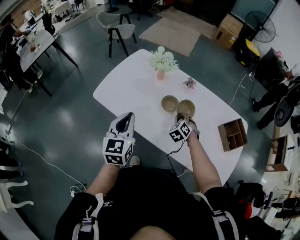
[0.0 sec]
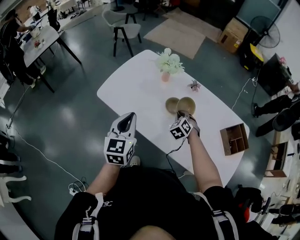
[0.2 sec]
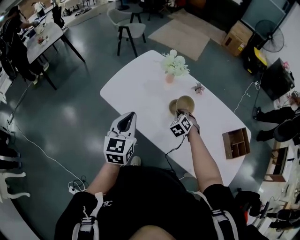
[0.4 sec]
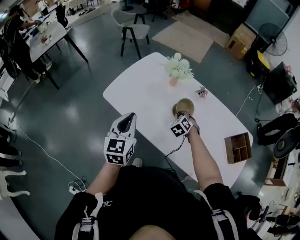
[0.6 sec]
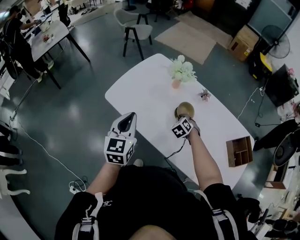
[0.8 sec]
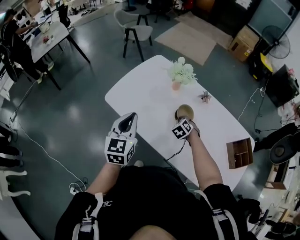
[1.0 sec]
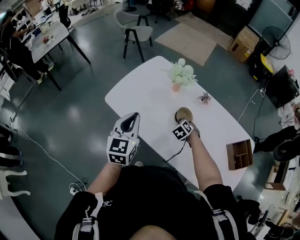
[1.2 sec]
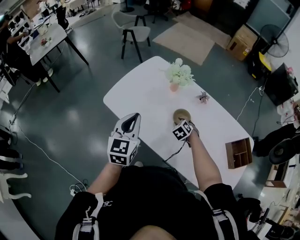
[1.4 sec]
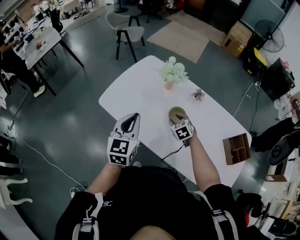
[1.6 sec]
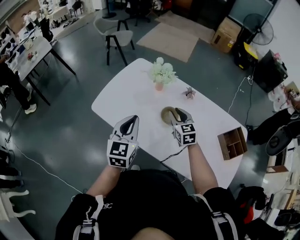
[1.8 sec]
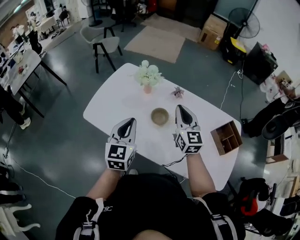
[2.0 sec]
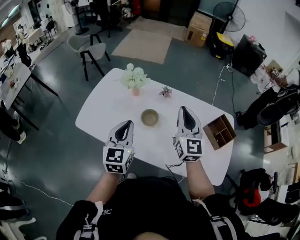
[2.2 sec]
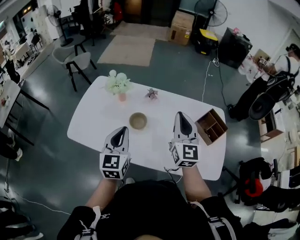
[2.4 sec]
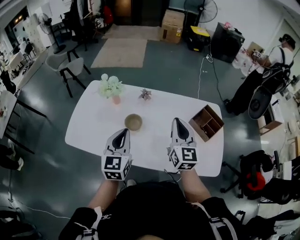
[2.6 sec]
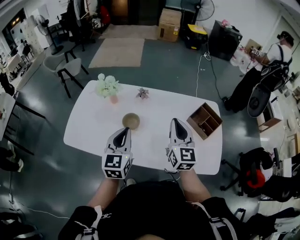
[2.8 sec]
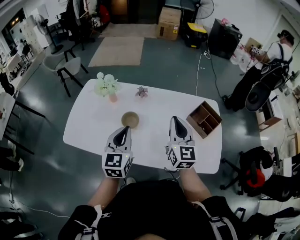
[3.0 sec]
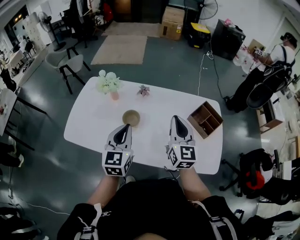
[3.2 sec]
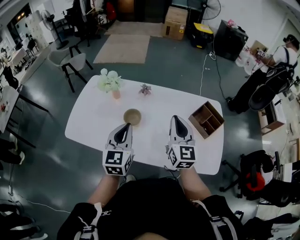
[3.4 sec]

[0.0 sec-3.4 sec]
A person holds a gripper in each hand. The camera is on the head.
0.0 sec to 1.6 sec: The right gripper goes some 10 cm to the left and forward, swivels some 20 degrees, and opens; the left gripper goes roughly 5 cm forward.
1.6 sec to 3.4 sec: The left gripper shifts by approximately 20 cm, and turns by roughly 20 degrees. The right gripper ends up some 35 cm from where it was, tilts its fingers some 50 degrees upward, and closes up.

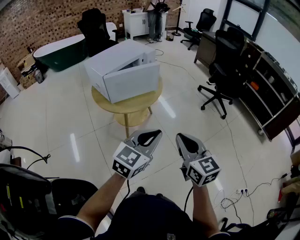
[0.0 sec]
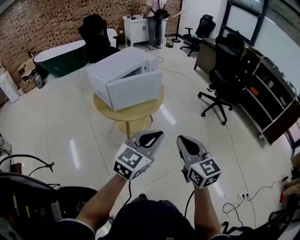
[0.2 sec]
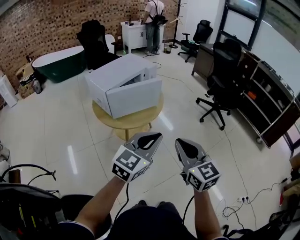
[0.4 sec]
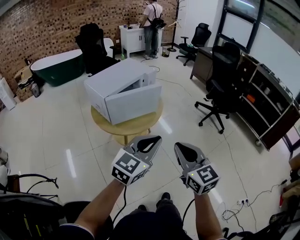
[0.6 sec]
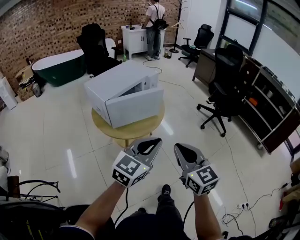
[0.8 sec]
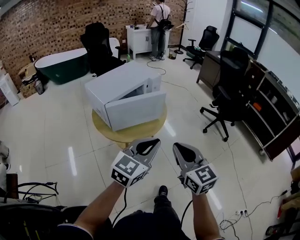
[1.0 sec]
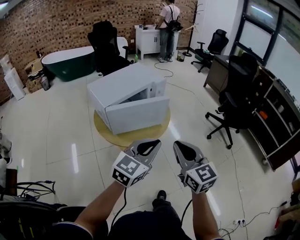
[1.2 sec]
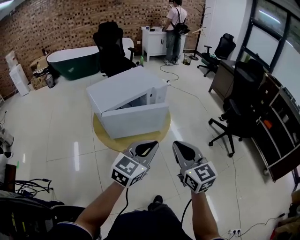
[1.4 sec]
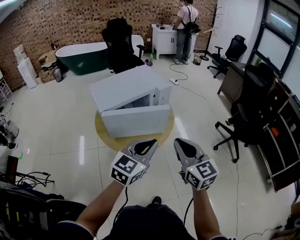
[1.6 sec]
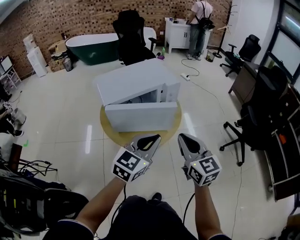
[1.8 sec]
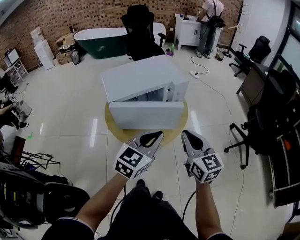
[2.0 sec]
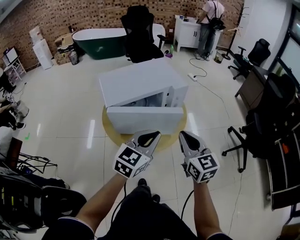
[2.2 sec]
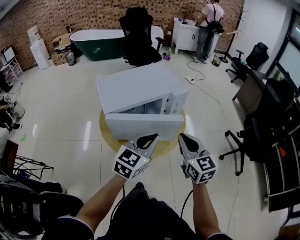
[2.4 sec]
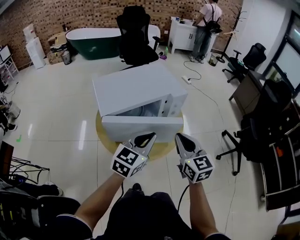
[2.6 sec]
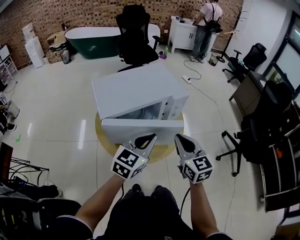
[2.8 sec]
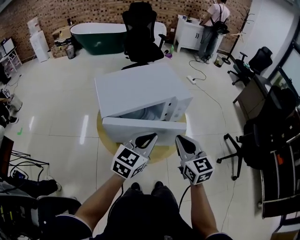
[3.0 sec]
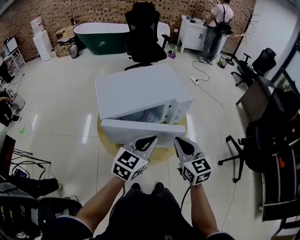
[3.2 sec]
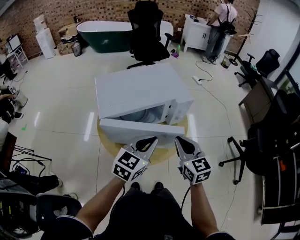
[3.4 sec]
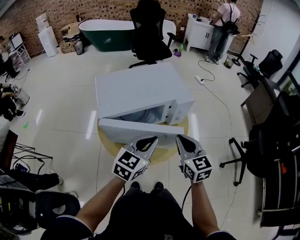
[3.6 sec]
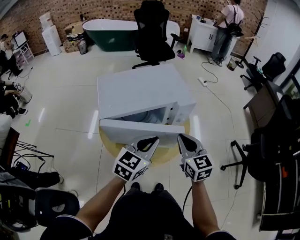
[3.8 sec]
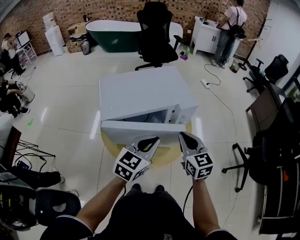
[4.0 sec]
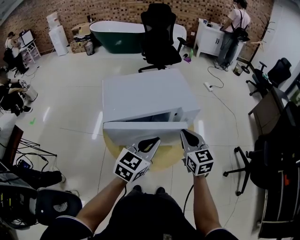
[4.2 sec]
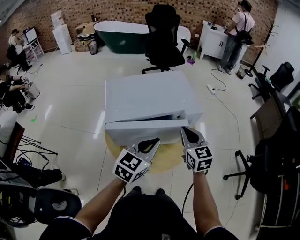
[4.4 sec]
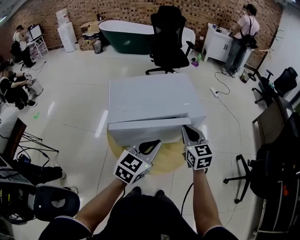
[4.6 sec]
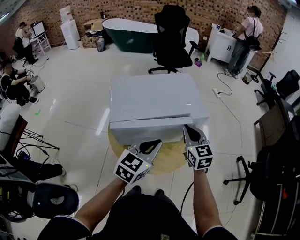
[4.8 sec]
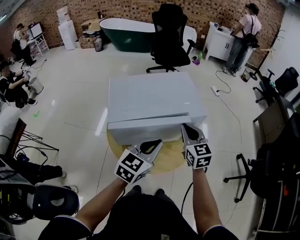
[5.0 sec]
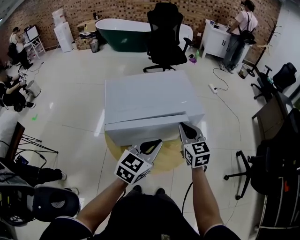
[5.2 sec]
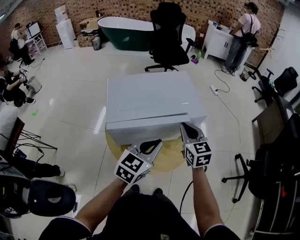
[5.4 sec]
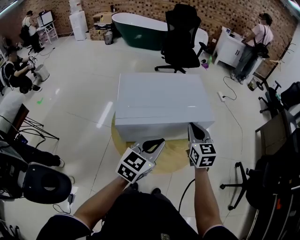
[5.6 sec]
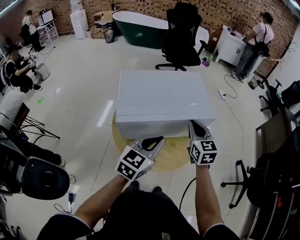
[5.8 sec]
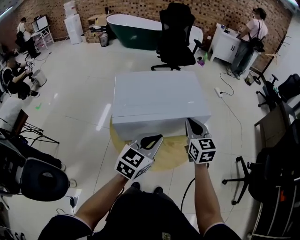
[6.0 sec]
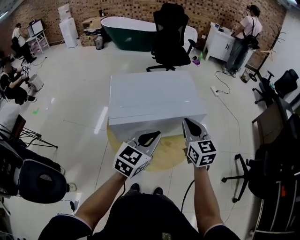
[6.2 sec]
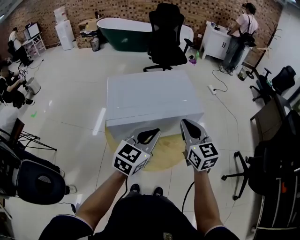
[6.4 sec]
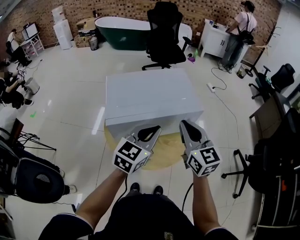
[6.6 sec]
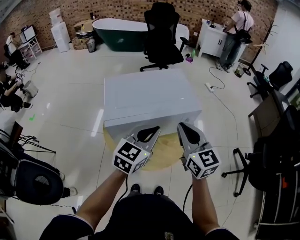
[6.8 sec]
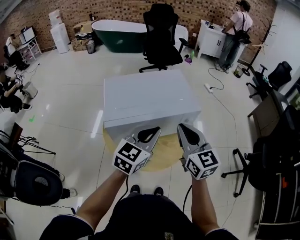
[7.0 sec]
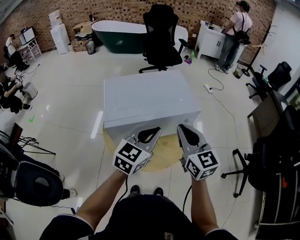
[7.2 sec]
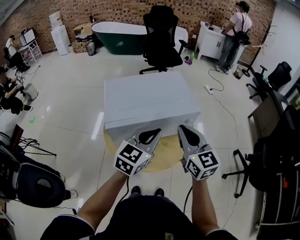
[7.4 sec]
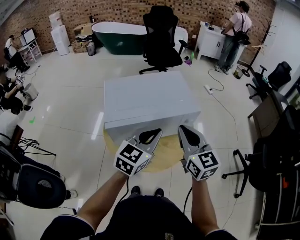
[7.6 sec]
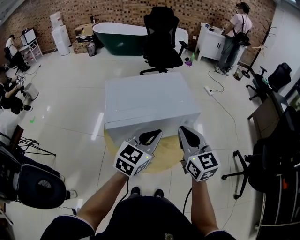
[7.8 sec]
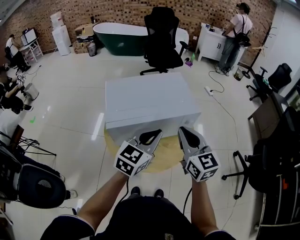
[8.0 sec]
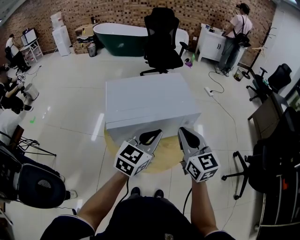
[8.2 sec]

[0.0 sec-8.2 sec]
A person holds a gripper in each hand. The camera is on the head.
0.0 sec to 1.6 sec: Both grippers travel together forward, approximately 25 cm.
1.6 sec to 3.2 sec: The left gripper heads forward, covering roughly 15 cm. Meanwhile the right gripper heads forward and downward, covering approximately 20 cm.
3.2 sec to 5.0 sec: The right gripper heads forward, covering roughly 15 cm.
5.0 sec to 6.6 sec: The right gripper shifts about 10 cm upward and backward.
6.6 sec to 8.2 sec: The grippers move only a little.

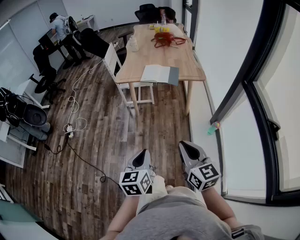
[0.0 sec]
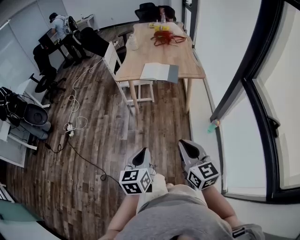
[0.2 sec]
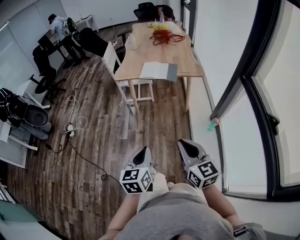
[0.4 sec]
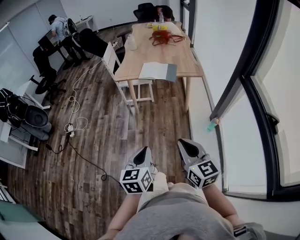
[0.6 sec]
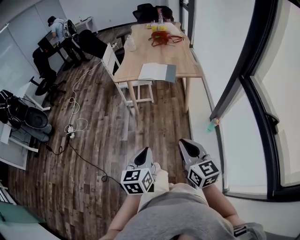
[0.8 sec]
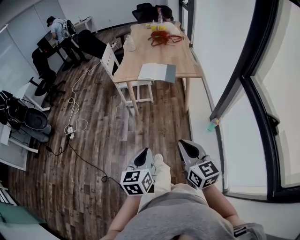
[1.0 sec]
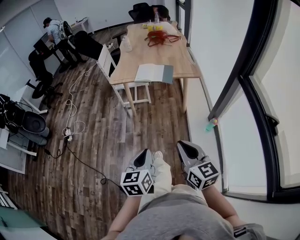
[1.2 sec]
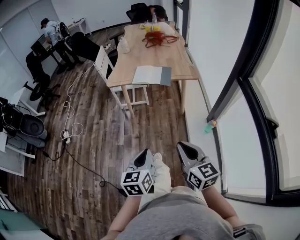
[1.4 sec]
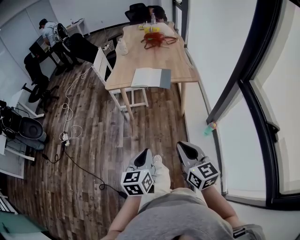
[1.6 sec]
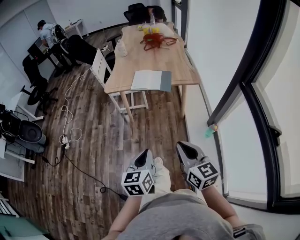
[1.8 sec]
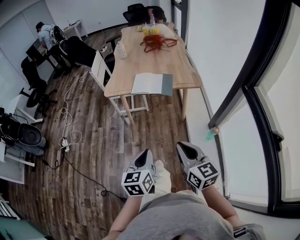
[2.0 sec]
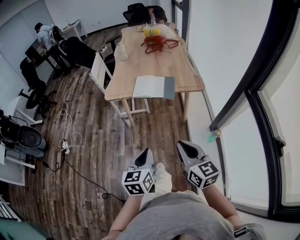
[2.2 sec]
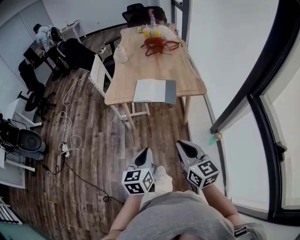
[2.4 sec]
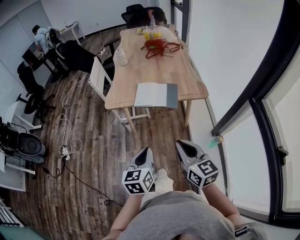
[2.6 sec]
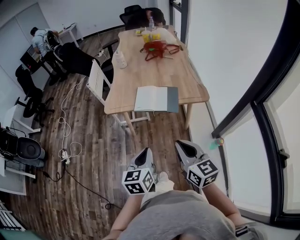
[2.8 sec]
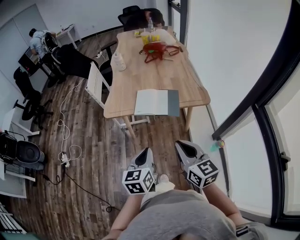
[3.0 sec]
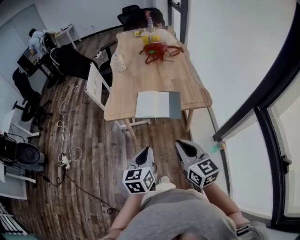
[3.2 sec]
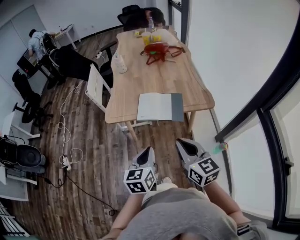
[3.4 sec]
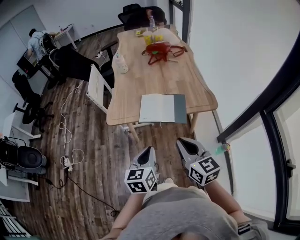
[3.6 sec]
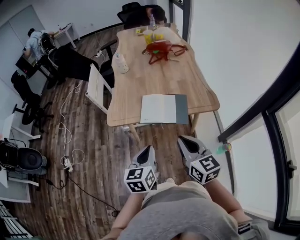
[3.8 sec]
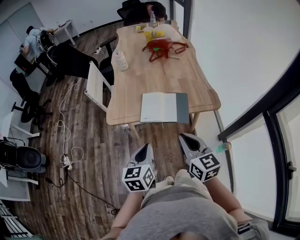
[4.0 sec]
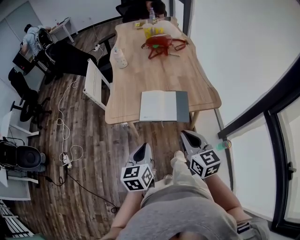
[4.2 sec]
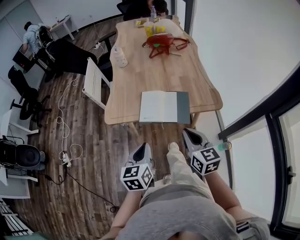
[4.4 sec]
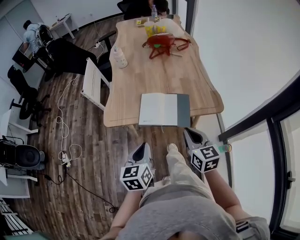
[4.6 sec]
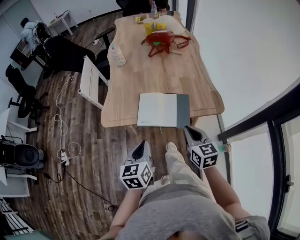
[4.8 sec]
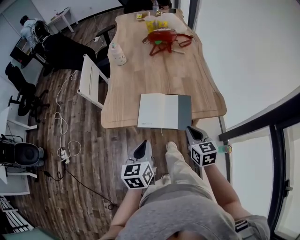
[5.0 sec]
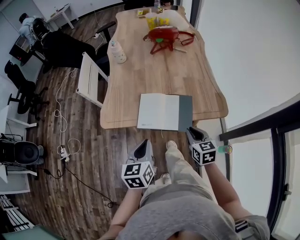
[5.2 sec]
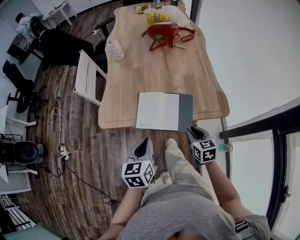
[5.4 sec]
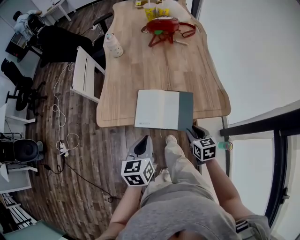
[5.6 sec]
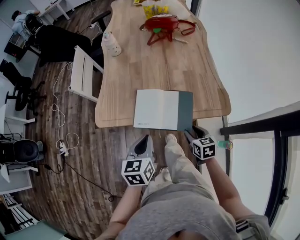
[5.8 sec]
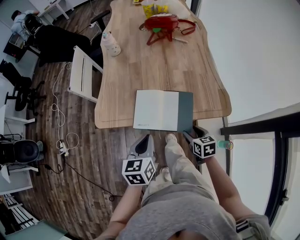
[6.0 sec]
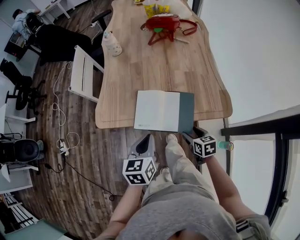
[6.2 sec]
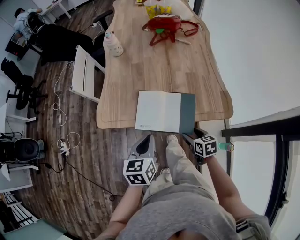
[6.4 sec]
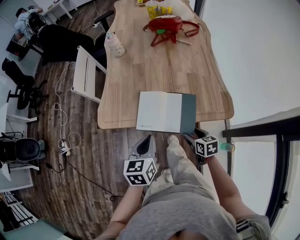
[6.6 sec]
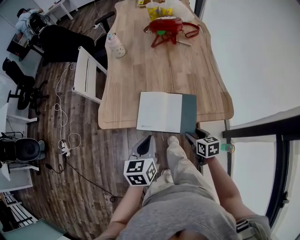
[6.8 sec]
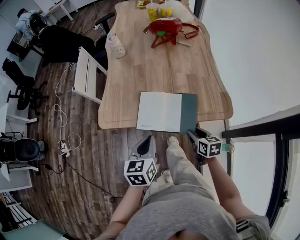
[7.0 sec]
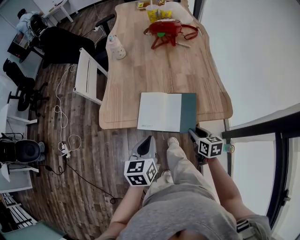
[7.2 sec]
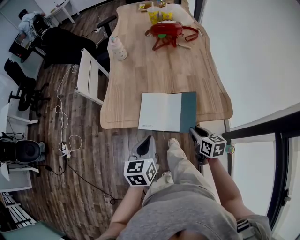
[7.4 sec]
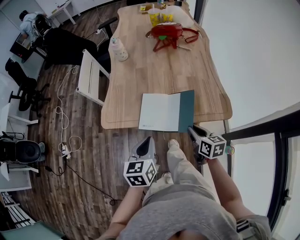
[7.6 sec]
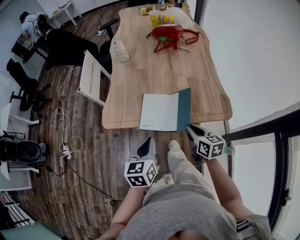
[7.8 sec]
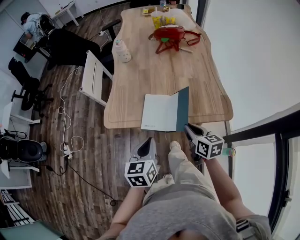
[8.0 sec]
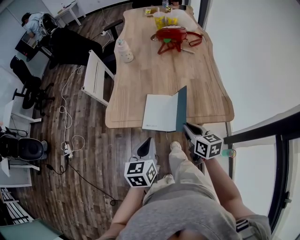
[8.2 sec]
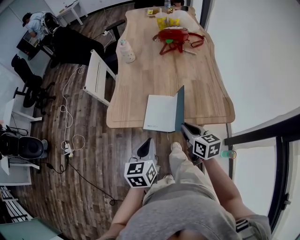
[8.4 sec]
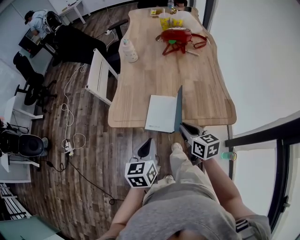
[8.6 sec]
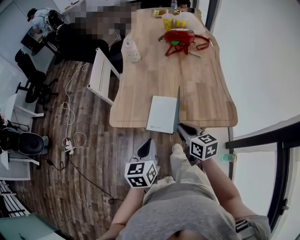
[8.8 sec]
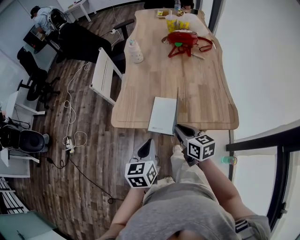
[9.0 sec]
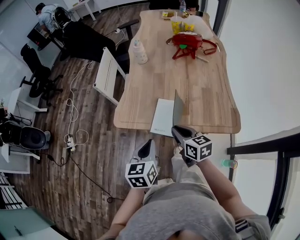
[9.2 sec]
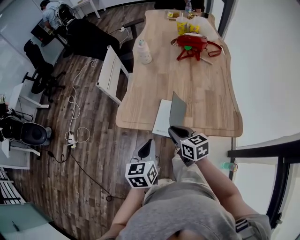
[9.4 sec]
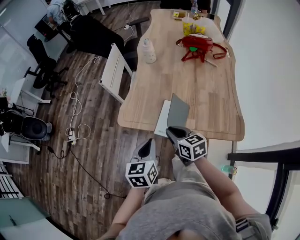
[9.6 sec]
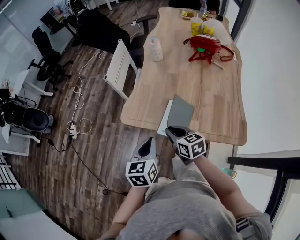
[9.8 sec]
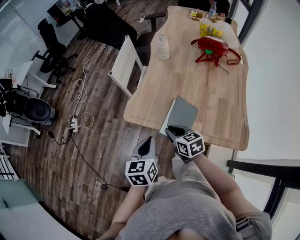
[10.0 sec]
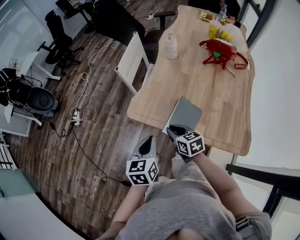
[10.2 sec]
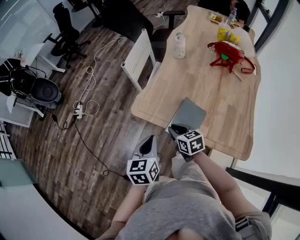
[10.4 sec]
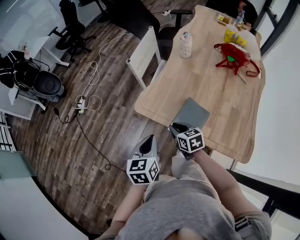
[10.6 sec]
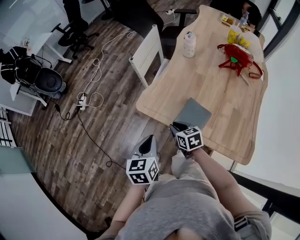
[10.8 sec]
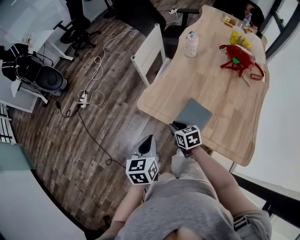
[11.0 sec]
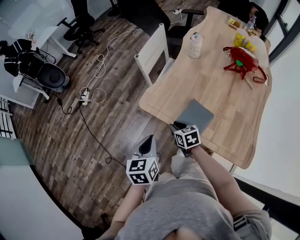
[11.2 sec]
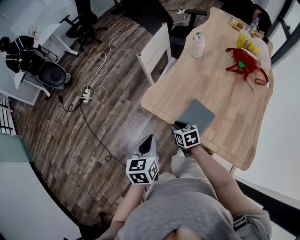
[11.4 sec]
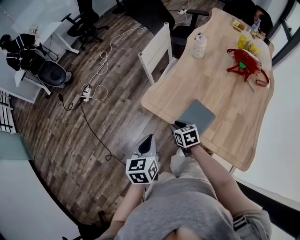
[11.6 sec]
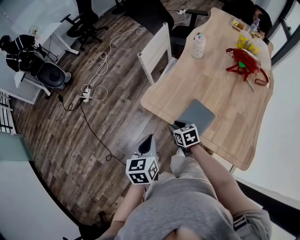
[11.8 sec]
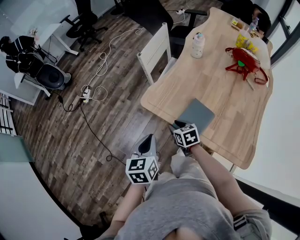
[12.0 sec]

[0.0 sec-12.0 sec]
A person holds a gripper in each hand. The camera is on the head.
0.0 sec to 1.6 sec: The right gripper shifts approximately 5 cm forward; the left gripper shifts some 10 cm forward and to the right.
1.6 sec to 3.0 sec: Both grippers travel together forward, some 25 cm.
3.0 sec to 4.4 sec: Both grippers travel together forward, about 15 cm.
4.4 sec to 6.0 sec: The right gripper shifts some 25 cm downward and forward, rotates roughly 30 degrees, and opens; the left gripper shifts approximately 15 cm forward and to the right.
6.0 sec to 7.6 sec: The right gripper shifts some 10 cm upward, and closes its fingers.
7.6 sec to 9.0 sec: The right gripper heads to the left and upward, covering roughly 15 cm.
9.0 sec to 10.4 sec: The right gripper travels to the left, forward and downward by about 15 cm, and swivels roughly 30 degrees. Meanwhile the left gripper travels to the left by approximately 5 cm, and swivels some 20 degrees.
10.4 sec to 12.0 sec: The right gripper heads downward, covering about 5 cm.
